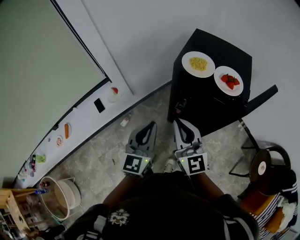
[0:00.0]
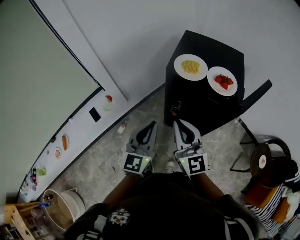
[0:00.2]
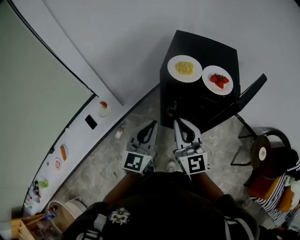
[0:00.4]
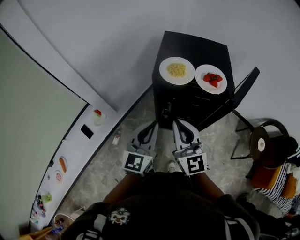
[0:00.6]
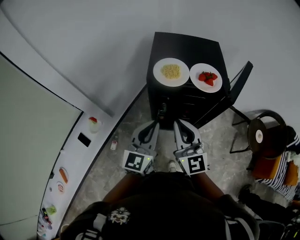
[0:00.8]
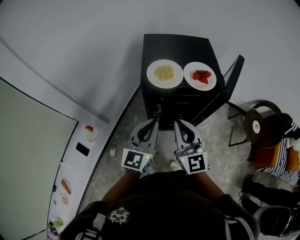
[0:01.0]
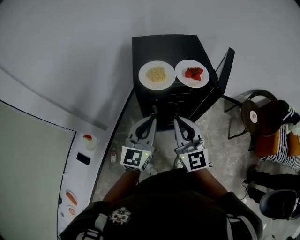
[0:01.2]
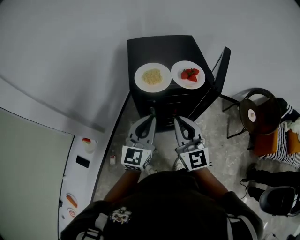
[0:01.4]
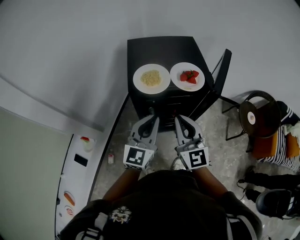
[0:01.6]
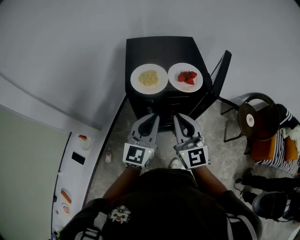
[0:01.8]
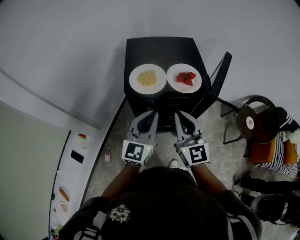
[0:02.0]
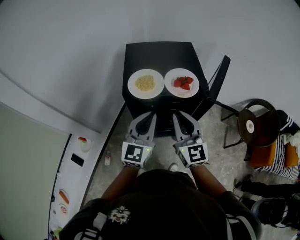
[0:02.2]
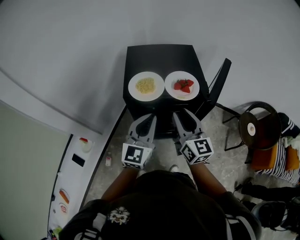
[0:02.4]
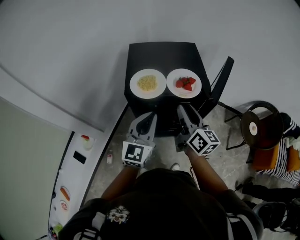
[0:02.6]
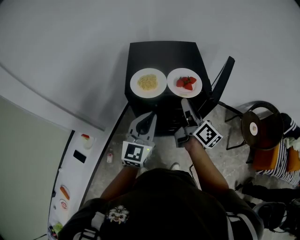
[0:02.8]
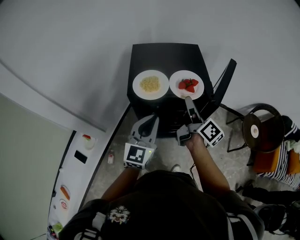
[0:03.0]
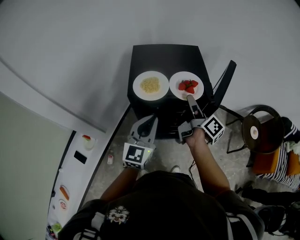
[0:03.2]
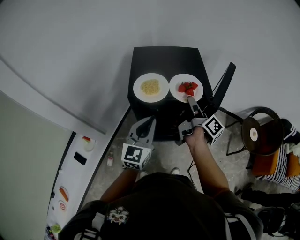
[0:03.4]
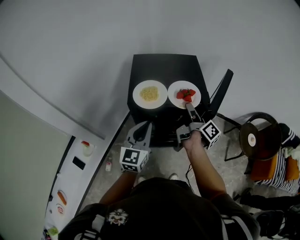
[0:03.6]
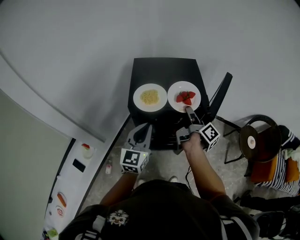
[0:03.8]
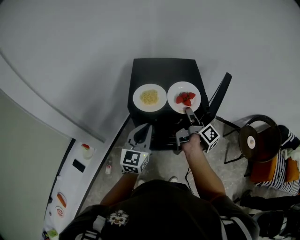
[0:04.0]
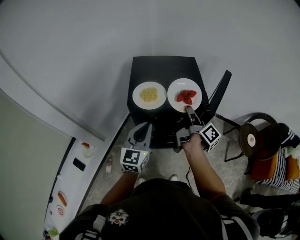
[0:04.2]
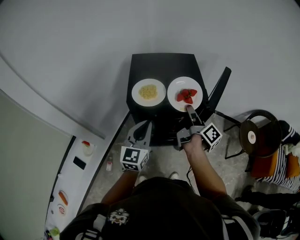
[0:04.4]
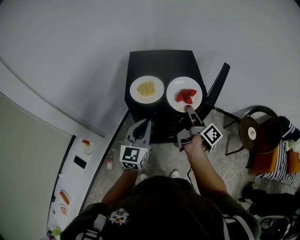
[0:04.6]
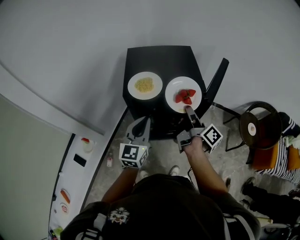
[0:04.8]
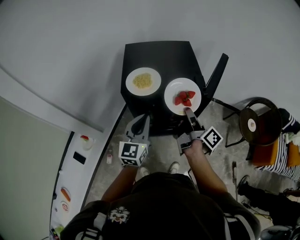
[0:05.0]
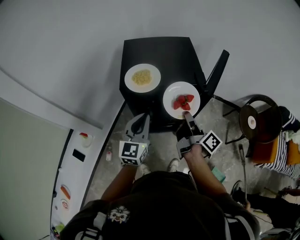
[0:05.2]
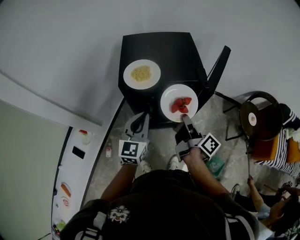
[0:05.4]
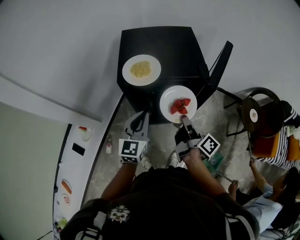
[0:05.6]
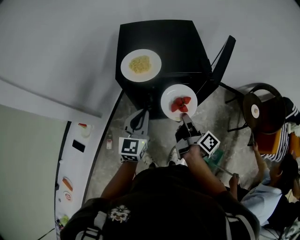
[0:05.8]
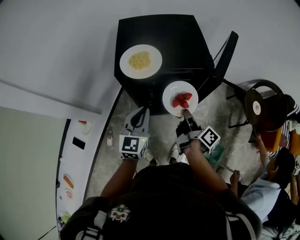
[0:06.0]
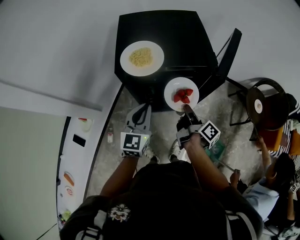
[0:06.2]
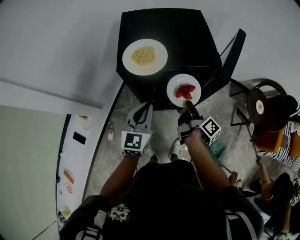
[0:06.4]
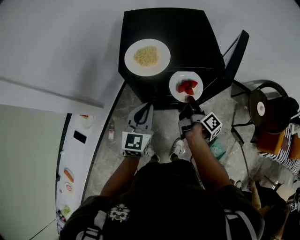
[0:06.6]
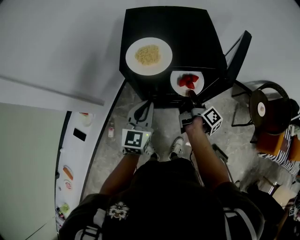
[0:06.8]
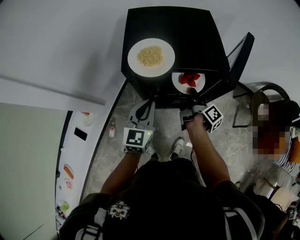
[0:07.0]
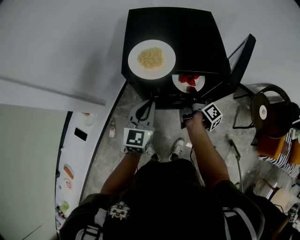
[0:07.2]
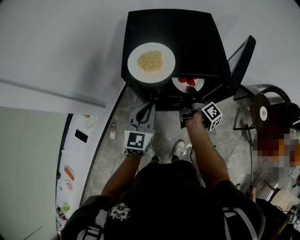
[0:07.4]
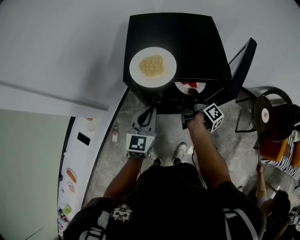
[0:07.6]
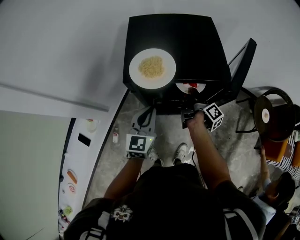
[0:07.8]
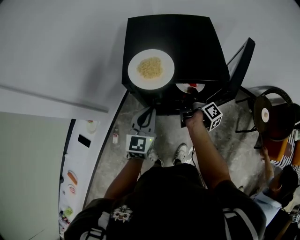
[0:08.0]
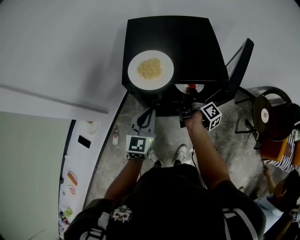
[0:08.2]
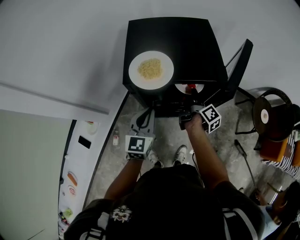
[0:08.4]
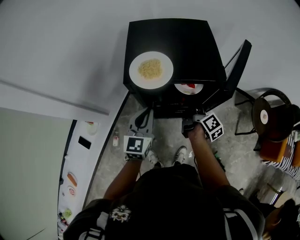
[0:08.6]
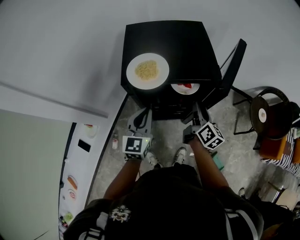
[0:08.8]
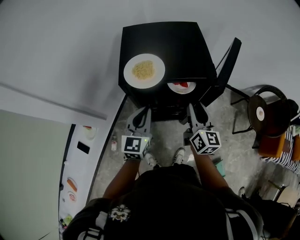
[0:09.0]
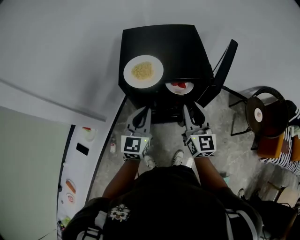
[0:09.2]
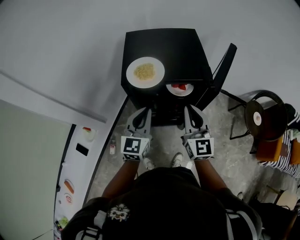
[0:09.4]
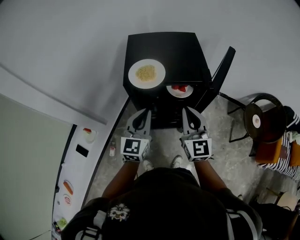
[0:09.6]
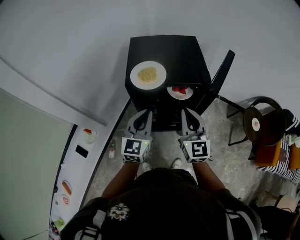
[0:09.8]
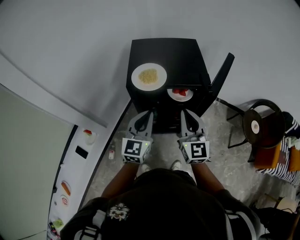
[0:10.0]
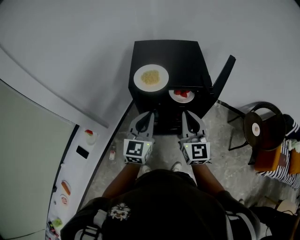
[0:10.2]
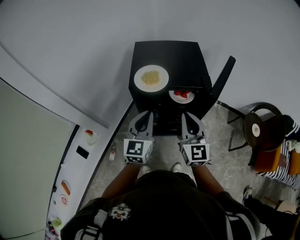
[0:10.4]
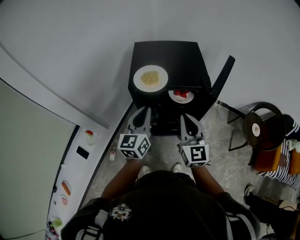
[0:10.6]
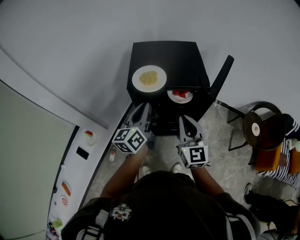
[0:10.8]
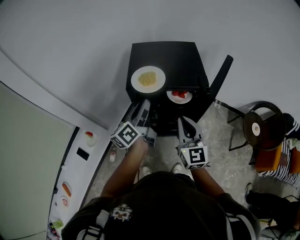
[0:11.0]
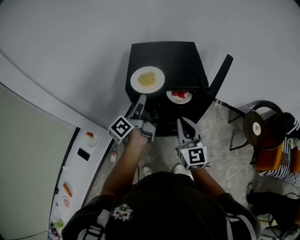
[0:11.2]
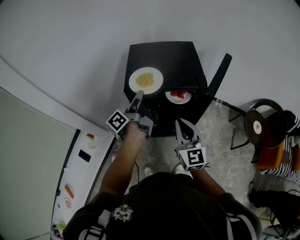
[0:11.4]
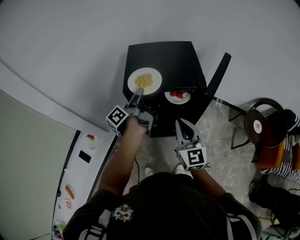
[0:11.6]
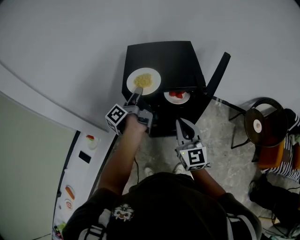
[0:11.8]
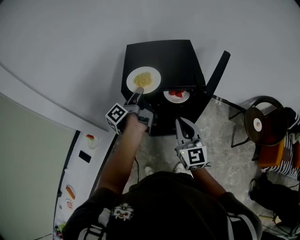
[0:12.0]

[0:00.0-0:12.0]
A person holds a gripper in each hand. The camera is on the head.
0:00.0 to 0:01.6: The right gripper shifts by some 10 cm, and turns by roughly 40 degrees. Meanwhile the left gripper changes place by some 15 cm, and turns by about 40 degrees.
0:01.6 to 0:03.0: The right gripper travels forward and to the right by about 15 cm, twists approximately 70 degrees clockwise, seen from behind, and opens.
0:03.0 to 0:04.4: The right gripper changes its angle by approximately 20 degrees, and closes.
0:04.4 to 0:06.0: The right gripper goes approximately 15 cm downward and backward. The left gripper is displaced downward by approximately 10 cm.
0:06.0 to 0:07.6: The right gripper travels forward by about 15 cm. The left gripper ends up approximately 5 cm from where it was.
0:07.6 to 0:09.0: The right gripper travels upward and backward by about 15 cm, rolls counterclockwise, seen from behind, by about 70 degrees, and opens up.
0:09.0 to 0:10.4: The left gripper is displaced upward by approximately 5 cm. Meanwhile the right gripper goes some 10 cm upward, backward and to the left, rotates some 30 degrees, and closes up.
0:10.4 to 0:12.0: The left gripper heads forward, covering roughly 10 cm, rotates around the line of its fingers by approximately 90 degrees, counterclockwise from behind, and opens and closes again.

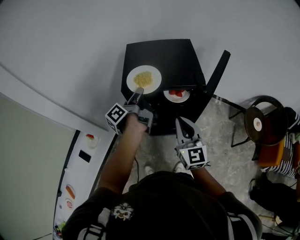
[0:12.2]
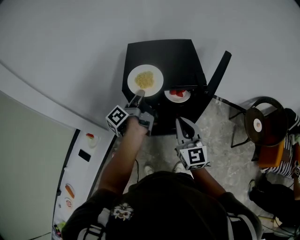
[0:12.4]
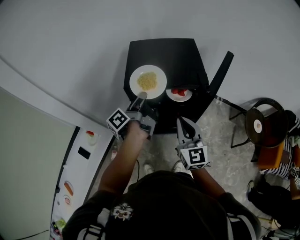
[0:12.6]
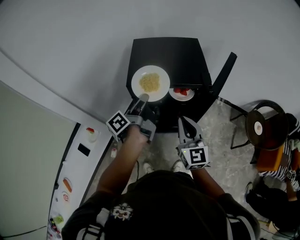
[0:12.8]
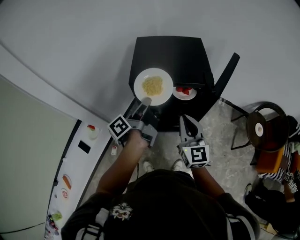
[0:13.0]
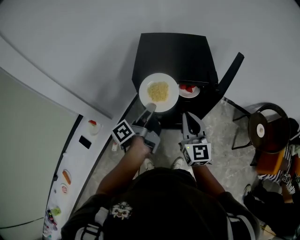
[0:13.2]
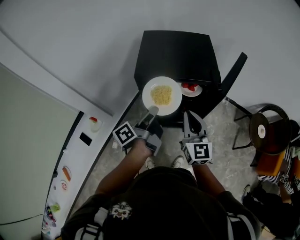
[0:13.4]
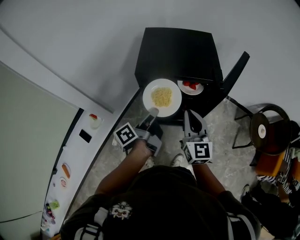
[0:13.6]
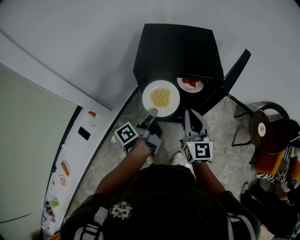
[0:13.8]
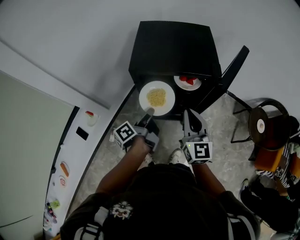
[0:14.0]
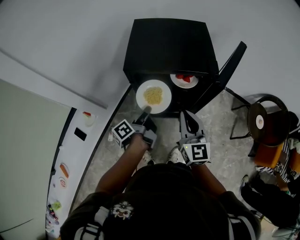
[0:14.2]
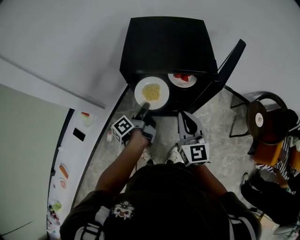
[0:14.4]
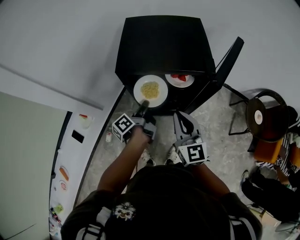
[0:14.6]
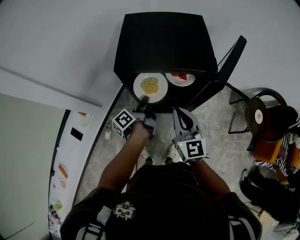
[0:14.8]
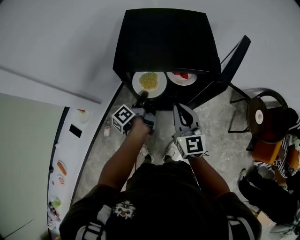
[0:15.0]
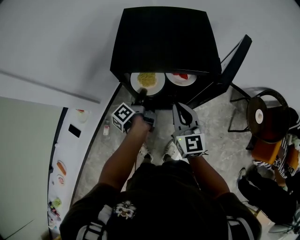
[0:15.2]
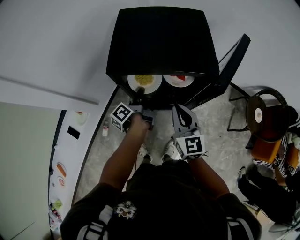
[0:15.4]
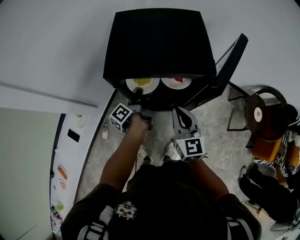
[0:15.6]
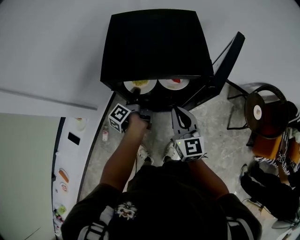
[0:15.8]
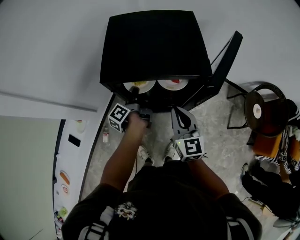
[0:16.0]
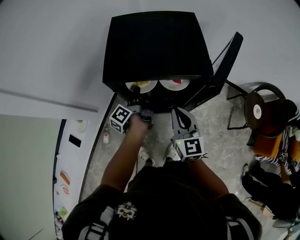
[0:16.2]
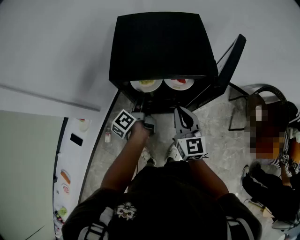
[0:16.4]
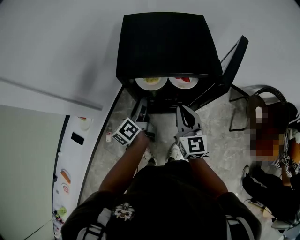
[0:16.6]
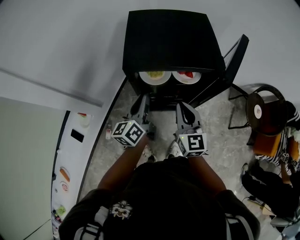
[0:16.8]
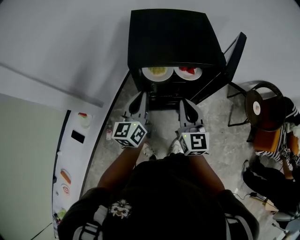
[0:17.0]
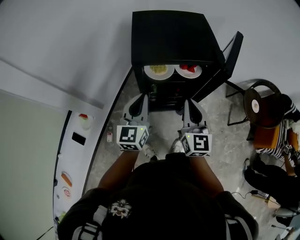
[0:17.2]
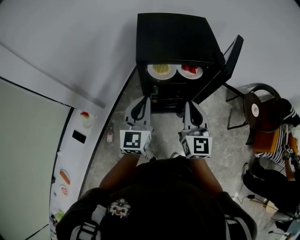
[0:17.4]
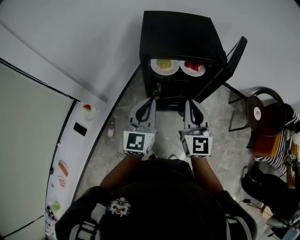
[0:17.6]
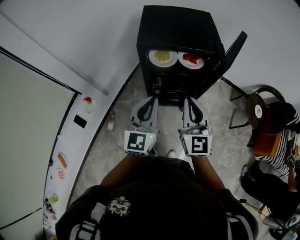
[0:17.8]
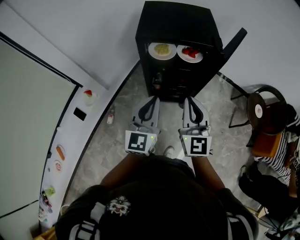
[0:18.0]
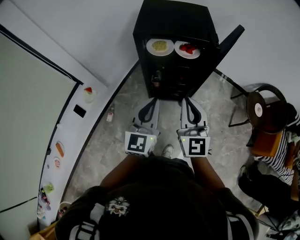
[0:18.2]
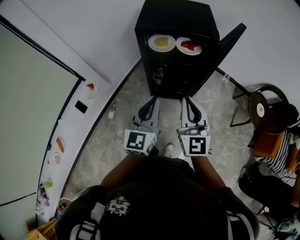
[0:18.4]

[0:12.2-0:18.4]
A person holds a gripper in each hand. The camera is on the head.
0:12.2 to 0:13.8: The left gripper goes some 15 cm backward and downward.
0:13.8 to 0:15.4: The left gripper is displaced forward and downward by some 15 cm, while the right gripper shifts some 10 cm downward.
0:15.4 to 0:16.8: The left gripper travels upward and backward by about 10 cm, rotates around the line of its fingers by roughly 50 degrees, clockwise from behind, and opens, then closes once more.
0:16.8 to 0:18.4: The left gripper shifts about 25 cm backward, and rotates some 40 degrees. The right gripper is displaced backward and upward by roughly 20 cm.

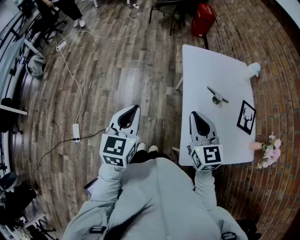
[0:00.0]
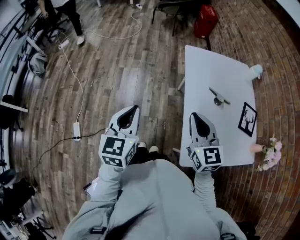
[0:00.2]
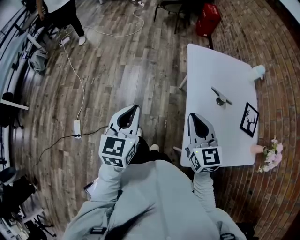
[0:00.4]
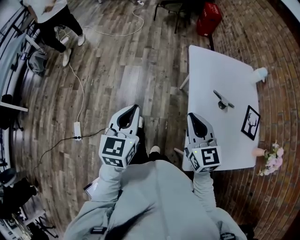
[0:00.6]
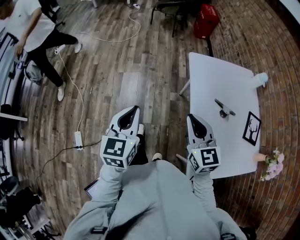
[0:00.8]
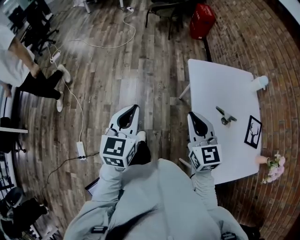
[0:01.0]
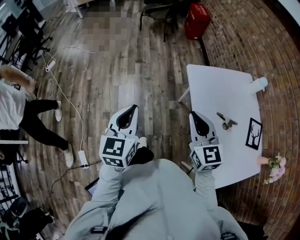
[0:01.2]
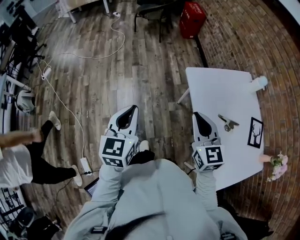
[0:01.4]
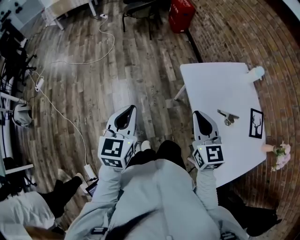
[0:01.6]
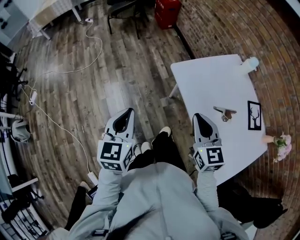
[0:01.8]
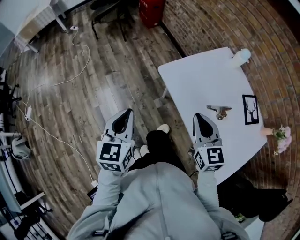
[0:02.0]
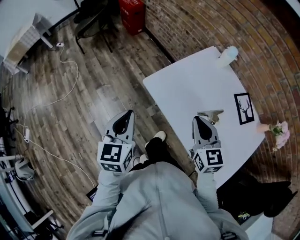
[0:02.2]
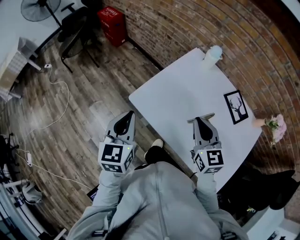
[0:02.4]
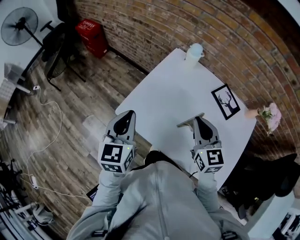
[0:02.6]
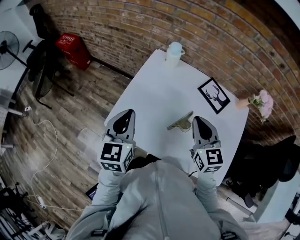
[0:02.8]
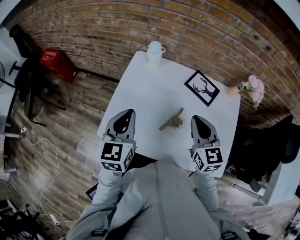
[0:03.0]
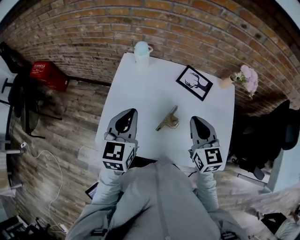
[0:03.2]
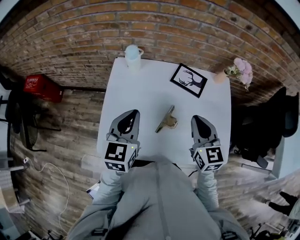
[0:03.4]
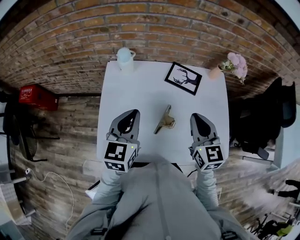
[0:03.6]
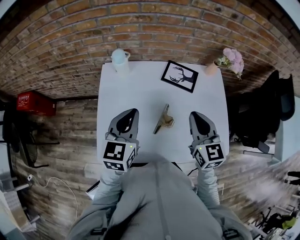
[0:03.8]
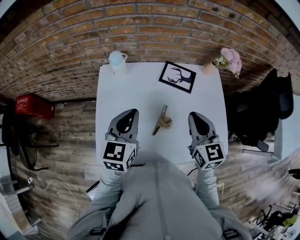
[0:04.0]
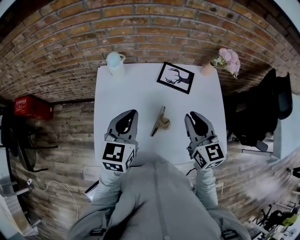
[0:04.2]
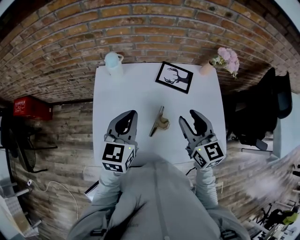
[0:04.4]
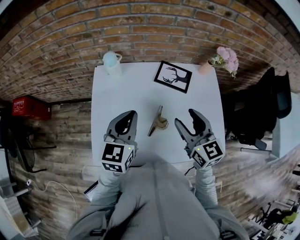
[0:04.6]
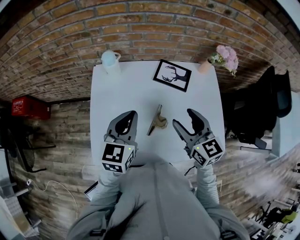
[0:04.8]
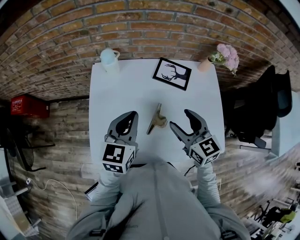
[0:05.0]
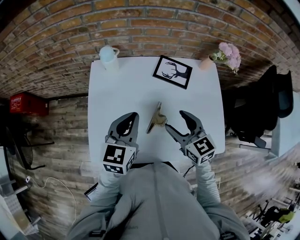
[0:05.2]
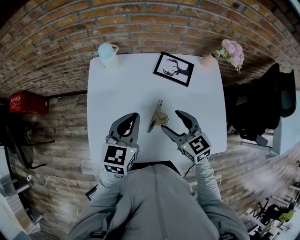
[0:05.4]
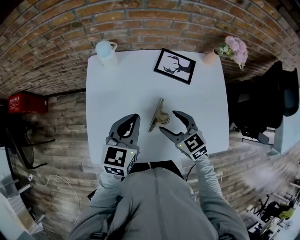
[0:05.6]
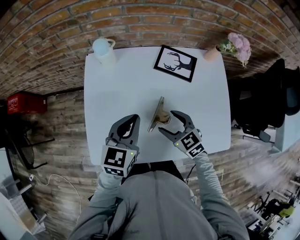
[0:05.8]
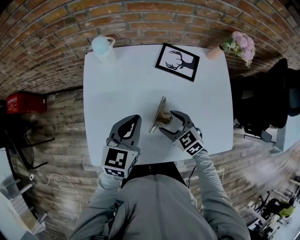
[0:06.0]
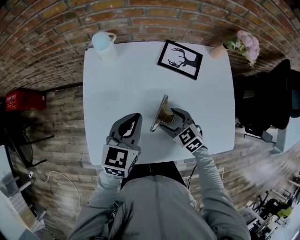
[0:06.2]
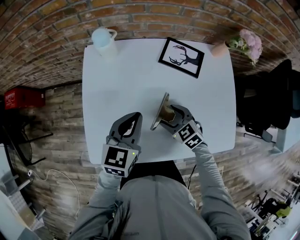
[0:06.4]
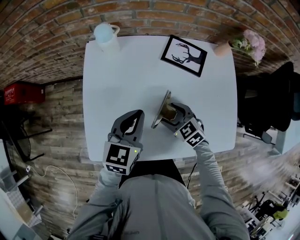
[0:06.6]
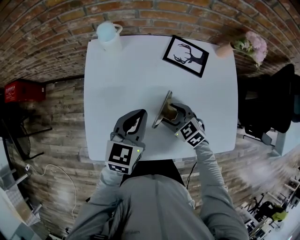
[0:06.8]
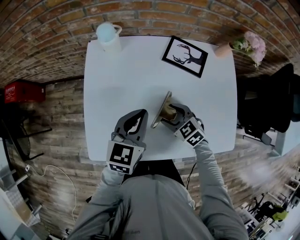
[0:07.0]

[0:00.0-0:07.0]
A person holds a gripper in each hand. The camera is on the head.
0:00.0 to 0:01.4: The grippers both shift forward by some 25 cm.
0:01.4 to 0:02.8: The left gripper changes place by some 40 cm, and rotates some 50 degrees; the right gripper moves about 30 cm, and swivels approximately 60 degrees.
0:02.8 to 0:04.2: The left gripper moves about 15 cm, and rotates some 30 degrees; the right gripper moves roughly 10 cm, and turns by approximately 20 degrees.
0:04.2 to 0:05.6: The right gripper is displaced downward and to the left by about 15 cm, turns by some 30 degrees, and opens, while the left gripper goes approximately 5 cm downward.
0:05.6 to 0:07.0: The right gripper heads downward, covering some 10 cm.
